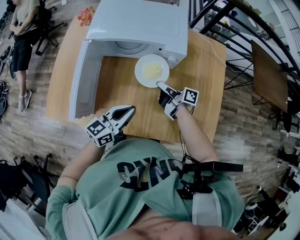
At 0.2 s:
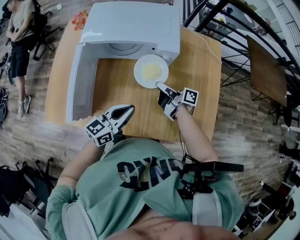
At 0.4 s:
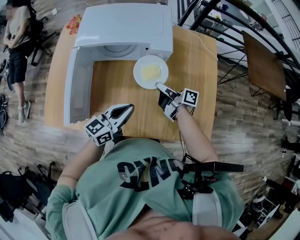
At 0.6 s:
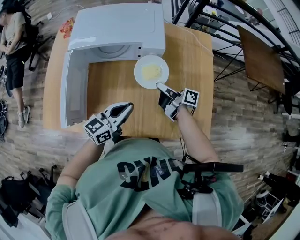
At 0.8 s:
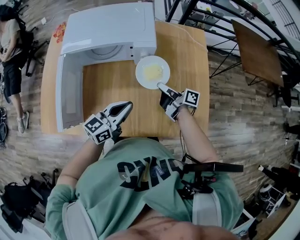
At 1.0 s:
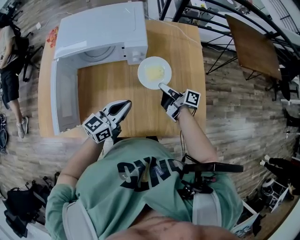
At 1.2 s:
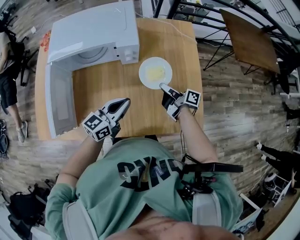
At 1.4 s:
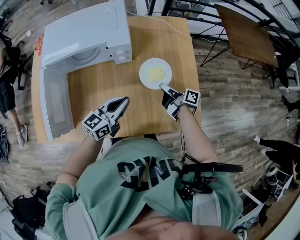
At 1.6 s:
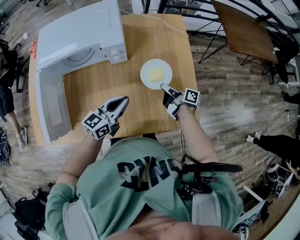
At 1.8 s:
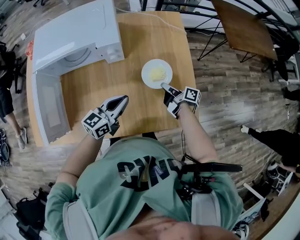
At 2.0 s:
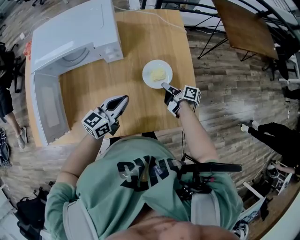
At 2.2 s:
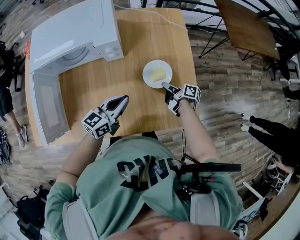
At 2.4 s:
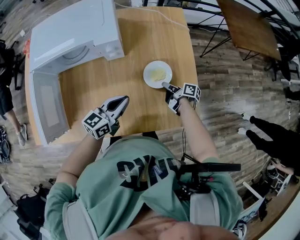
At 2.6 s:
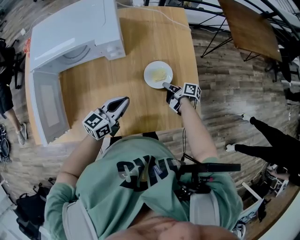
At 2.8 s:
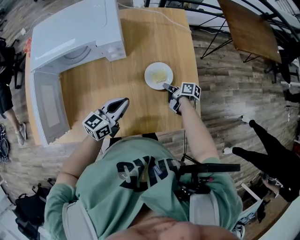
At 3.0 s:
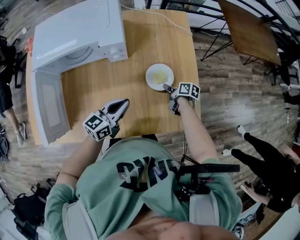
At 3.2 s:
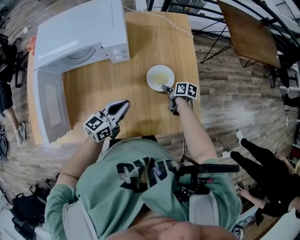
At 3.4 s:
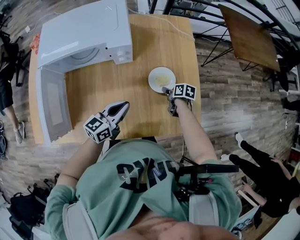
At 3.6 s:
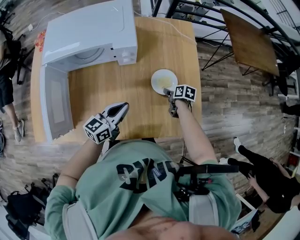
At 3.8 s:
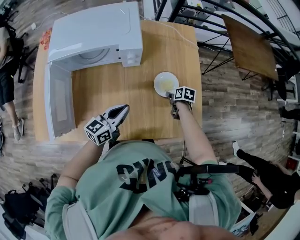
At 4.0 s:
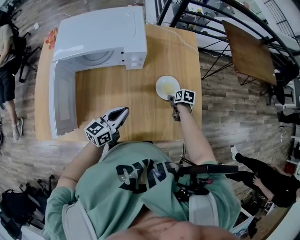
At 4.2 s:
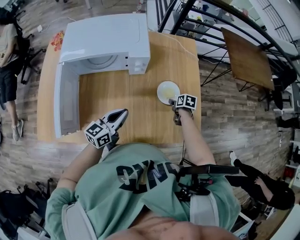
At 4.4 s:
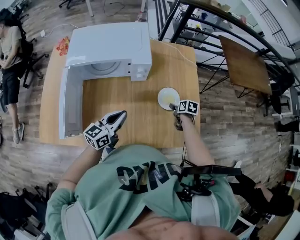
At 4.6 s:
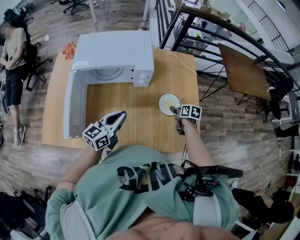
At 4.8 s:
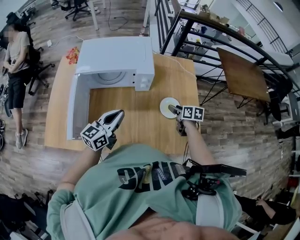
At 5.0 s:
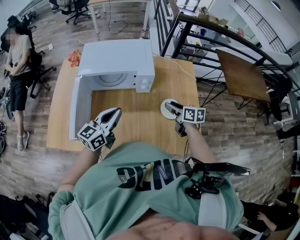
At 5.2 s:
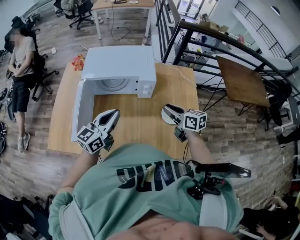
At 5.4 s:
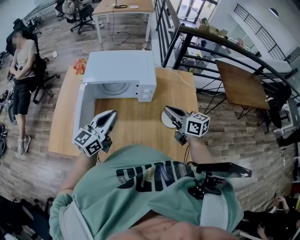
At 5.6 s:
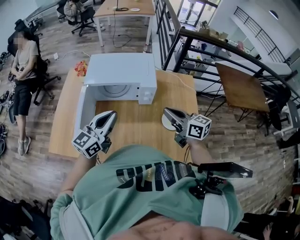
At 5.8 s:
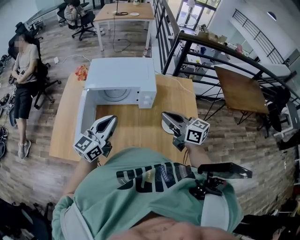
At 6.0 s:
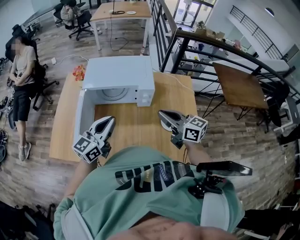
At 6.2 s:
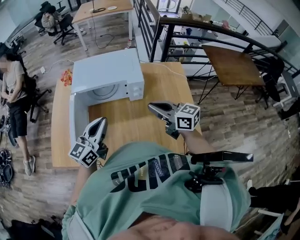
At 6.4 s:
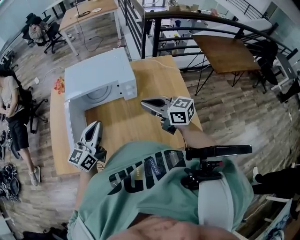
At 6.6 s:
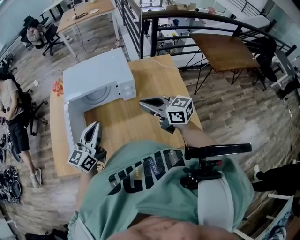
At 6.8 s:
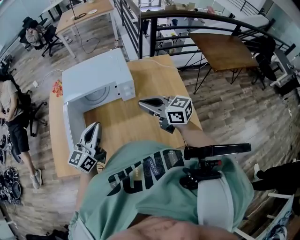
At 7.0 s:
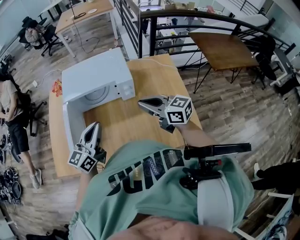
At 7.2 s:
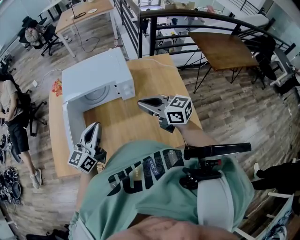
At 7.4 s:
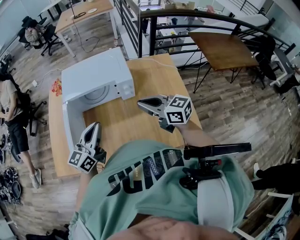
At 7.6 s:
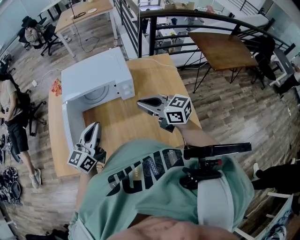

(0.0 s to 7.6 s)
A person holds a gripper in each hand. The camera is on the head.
0.0 s - 1.6 s: The left gripper moves to the right, roughly 15 cm, while the right gripper travels to the right by approximately 25 cm, and turns by about 20 degrees.
1.6 s - 3.0 s: The right gripper heads downward, covering about 10 cm, and changes its angle by roughly 30 degrees.
3.0 s - 4.6 s: The left gripper moves to the left and upward, roughly 15 cm. Meanwhile the right gripper moves upward, approximately 10 cm, turns by roughly 30 degrees, and opens its fingers.
4.6 s - 6.0 s: The left gripper goes approximately 15 cm upward and to the left. Meanwhile the right gripper travels upward and to the left by about 35 cm, tips its fingers upward by about 50 degrees, and closes.
6.0 s - 7.6 s: The grippers stay close to where they were, moving slightly.

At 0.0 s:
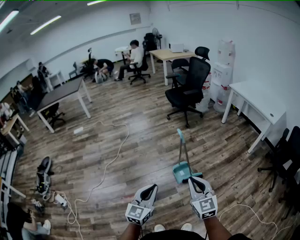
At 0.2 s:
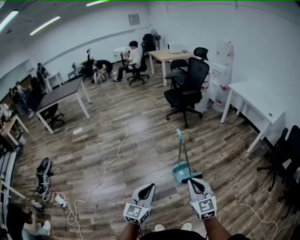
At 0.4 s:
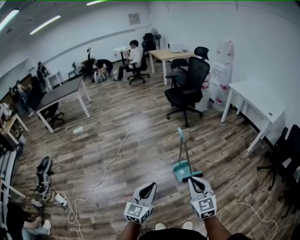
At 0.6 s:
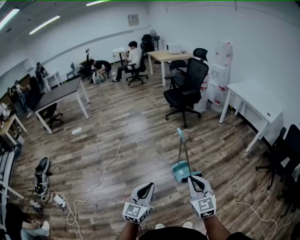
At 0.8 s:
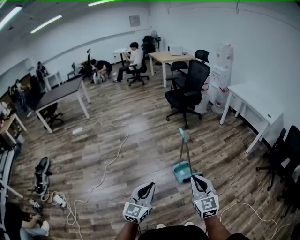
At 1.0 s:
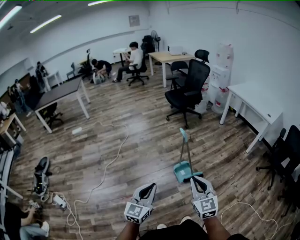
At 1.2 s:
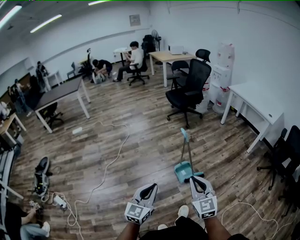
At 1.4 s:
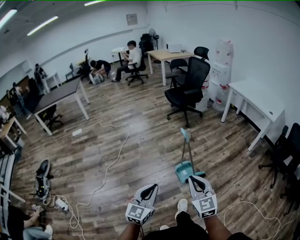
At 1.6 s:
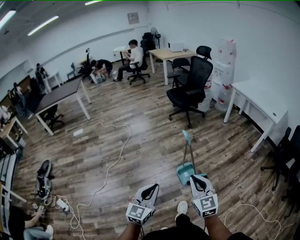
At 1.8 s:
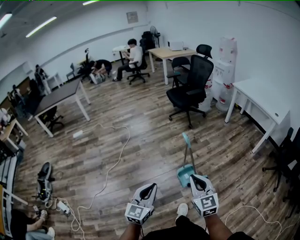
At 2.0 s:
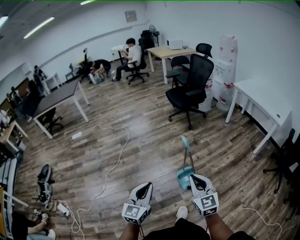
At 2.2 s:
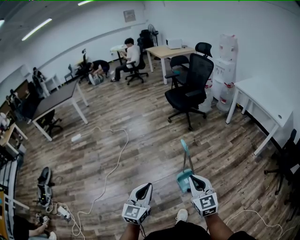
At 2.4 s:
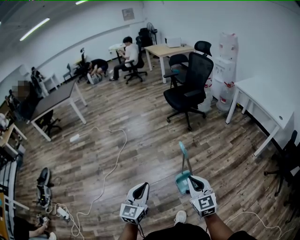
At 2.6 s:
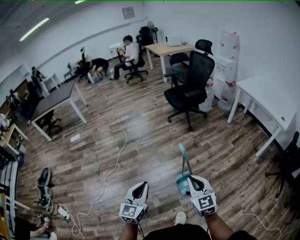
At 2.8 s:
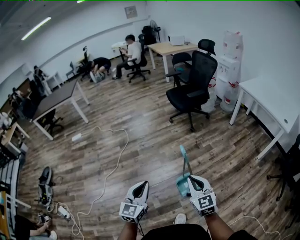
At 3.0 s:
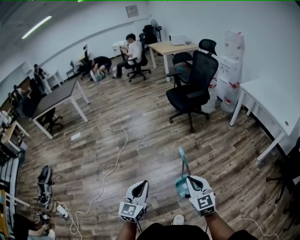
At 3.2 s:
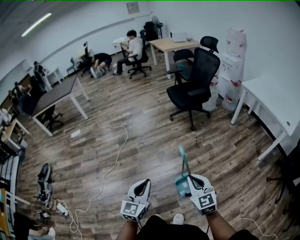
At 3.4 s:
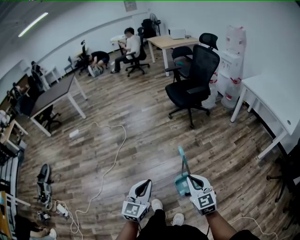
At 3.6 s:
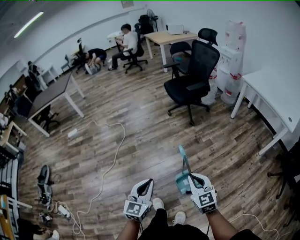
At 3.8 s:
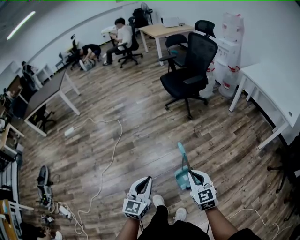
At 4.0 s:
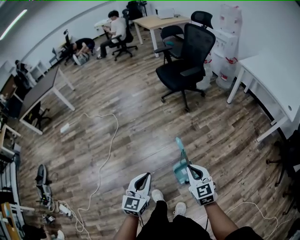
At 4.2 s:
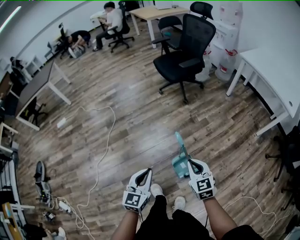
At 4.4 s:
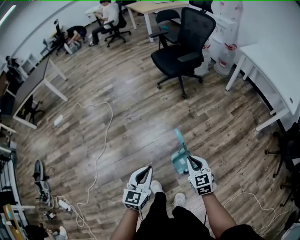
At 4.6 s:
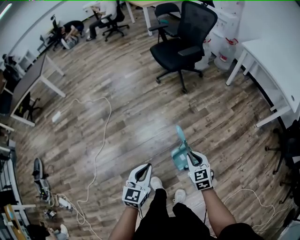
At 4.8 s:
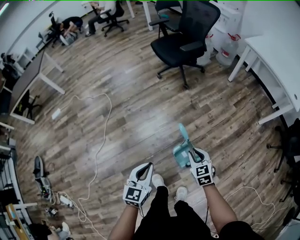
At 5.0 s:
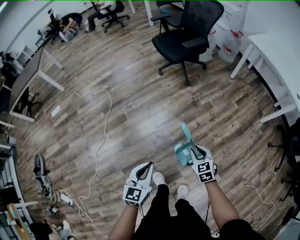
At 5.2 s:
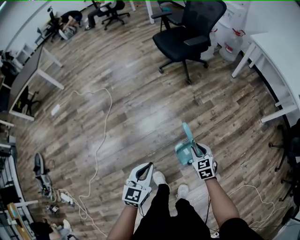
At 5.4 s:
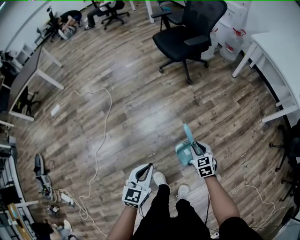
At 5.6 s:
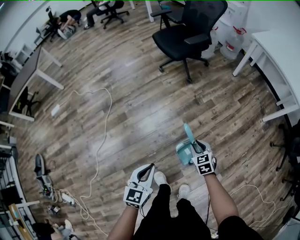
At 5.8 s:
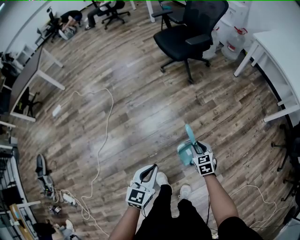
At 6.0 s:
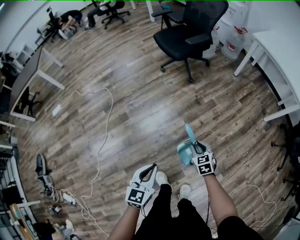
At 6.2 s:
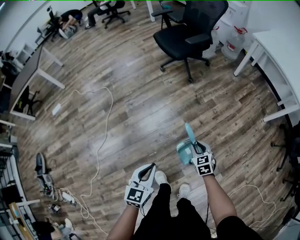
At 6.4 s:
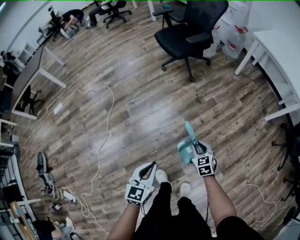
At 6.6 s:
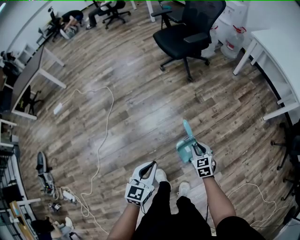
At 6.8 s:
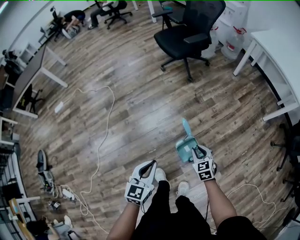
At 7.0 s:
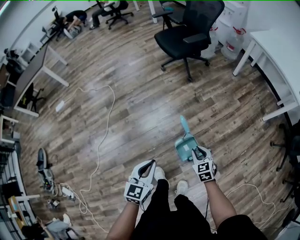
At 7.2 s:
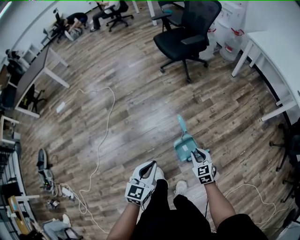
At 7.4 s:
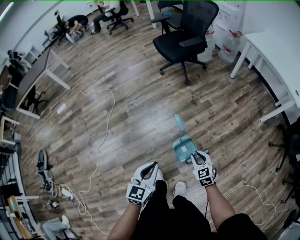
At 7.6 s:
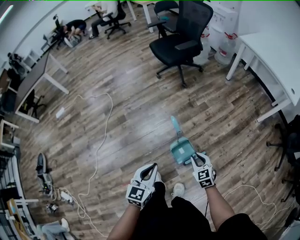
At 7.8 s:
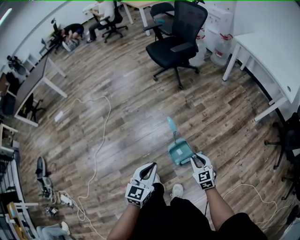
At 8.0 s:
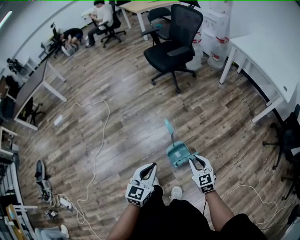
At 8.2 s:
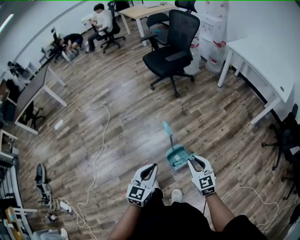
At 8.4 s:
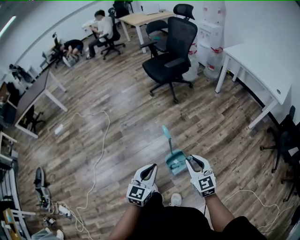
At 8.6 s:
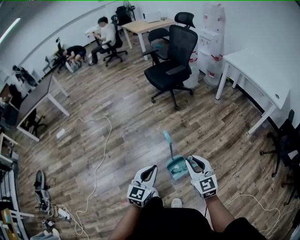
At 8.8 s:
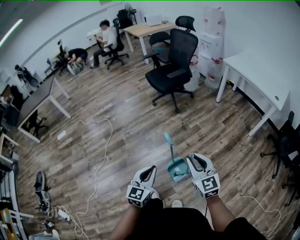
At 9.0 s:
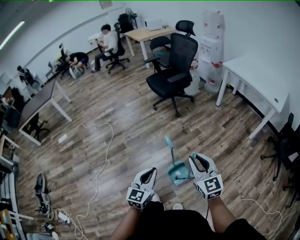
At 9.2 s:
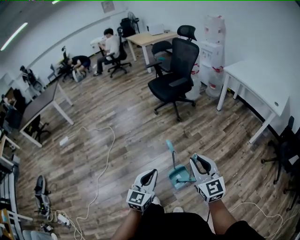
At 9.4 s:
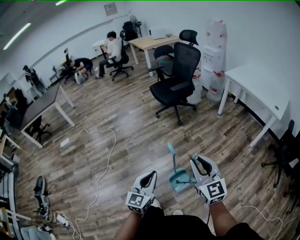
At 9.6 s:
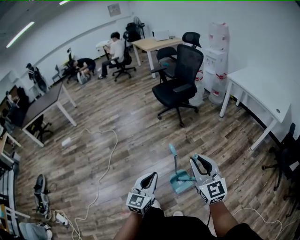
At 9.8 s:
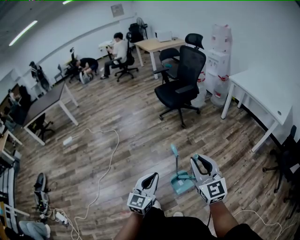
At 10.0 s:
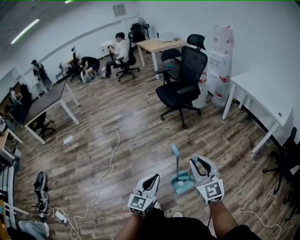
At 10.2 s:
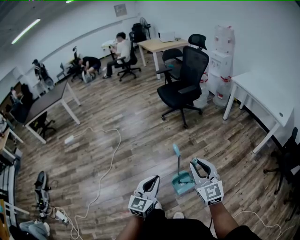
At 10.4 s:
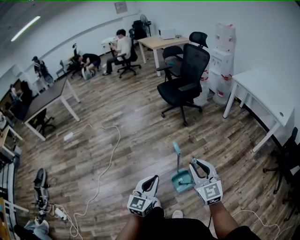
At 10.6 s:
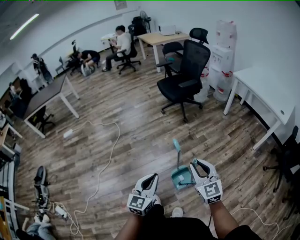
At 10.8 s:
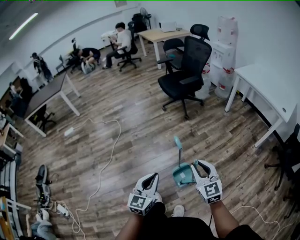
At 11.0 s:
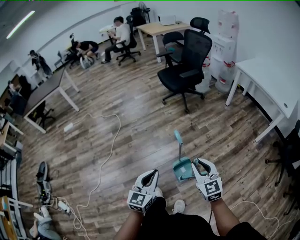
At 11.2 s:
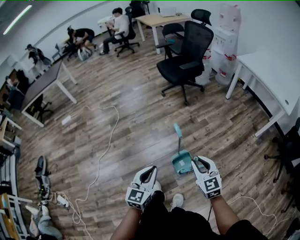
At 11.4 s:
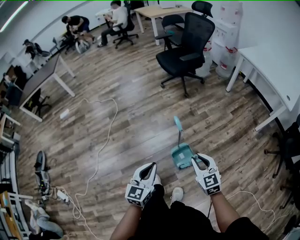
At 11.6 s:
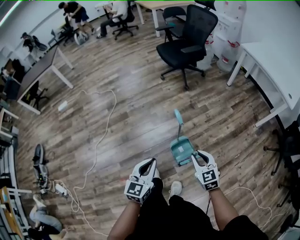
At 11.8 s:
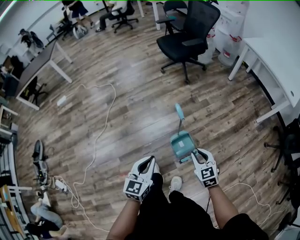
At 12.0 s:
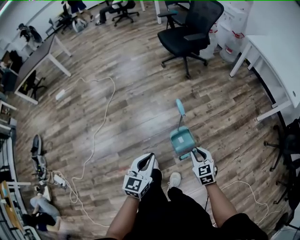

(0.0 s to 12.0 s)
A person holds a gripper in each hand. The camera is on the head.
0.0 s - 1.6 s: The right gripper moves approximately 5 cm. Meanwhile the left gripper ends up roughly 5 cm from where it was.
1.6 s - 3.0 s: Both grippers move forward, about 20 cm.
3.0 s - 4.4 s: The right gripper moves downward and forward, some 20 cm; the left gripper goes roughly 15 cm forward and downward.
4.4 s - 6.0 s: The right gripper moves downward and forward, approximately 15 cm. The left gripper shifts some 5 cm downward.
6.0 s - 7.6 s: The left gripper heads to the right and backward, covering some 10 cm. Meanwhile the right gripper heads backward and to the right, covering about 15 cm.
7.6 s - 9.0 s: The left gripper moves upward, roughly 5 cm; the right gripper heads upward, covering some 25 cm, and changes its angle by about 30 degrees.
10.4 s - 12.0 s: The right gripper moves downward, approximately 25 cm, and tips its fingers downward by approximately 30 degrees. The left gripper goes roughly 5 cm downward.

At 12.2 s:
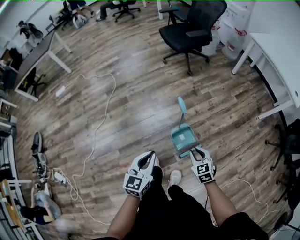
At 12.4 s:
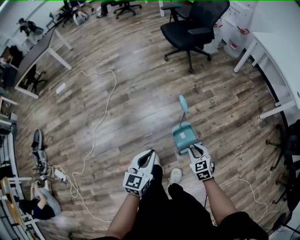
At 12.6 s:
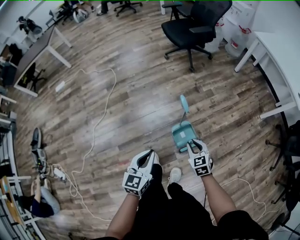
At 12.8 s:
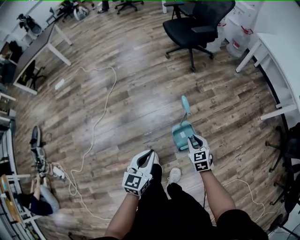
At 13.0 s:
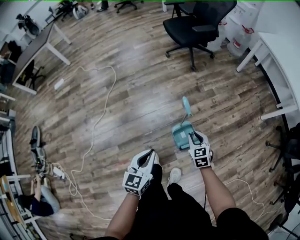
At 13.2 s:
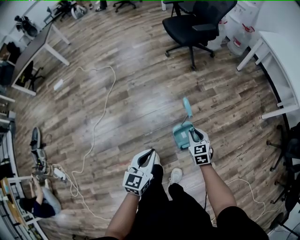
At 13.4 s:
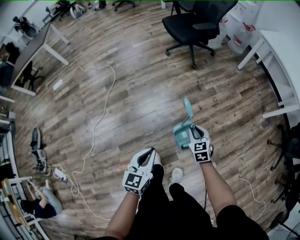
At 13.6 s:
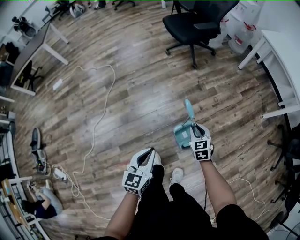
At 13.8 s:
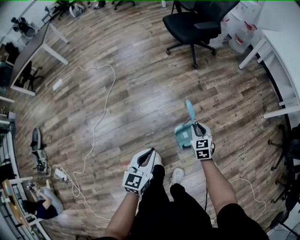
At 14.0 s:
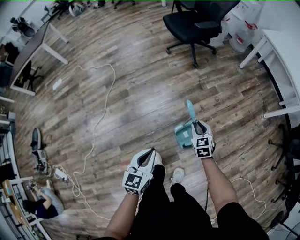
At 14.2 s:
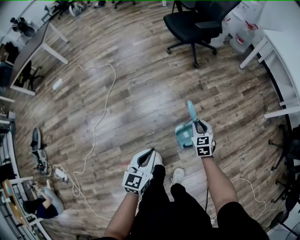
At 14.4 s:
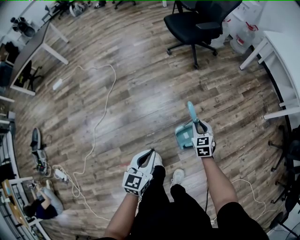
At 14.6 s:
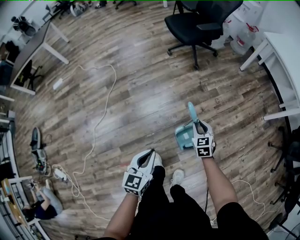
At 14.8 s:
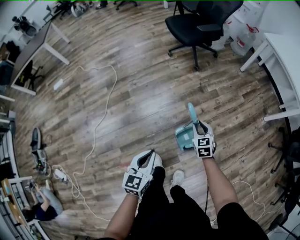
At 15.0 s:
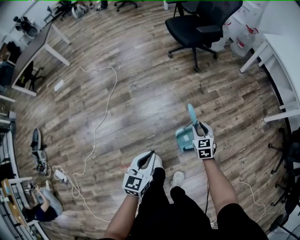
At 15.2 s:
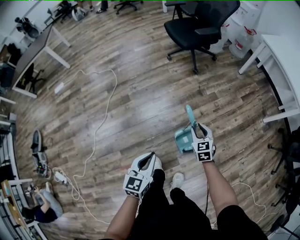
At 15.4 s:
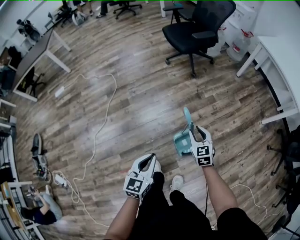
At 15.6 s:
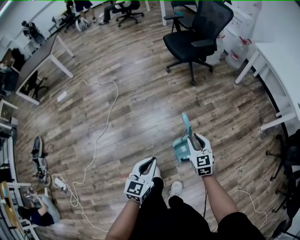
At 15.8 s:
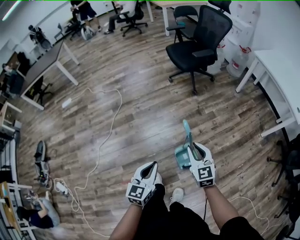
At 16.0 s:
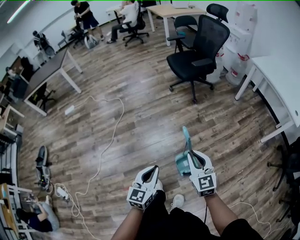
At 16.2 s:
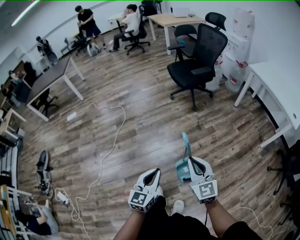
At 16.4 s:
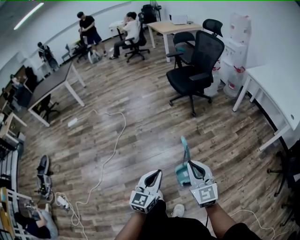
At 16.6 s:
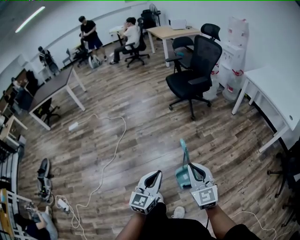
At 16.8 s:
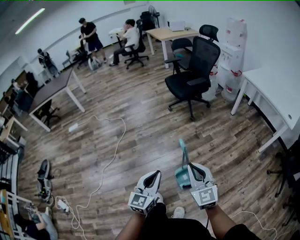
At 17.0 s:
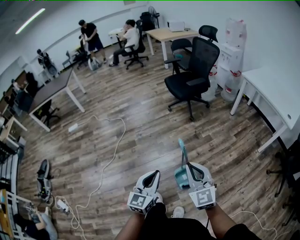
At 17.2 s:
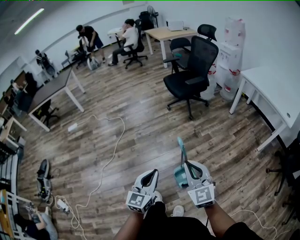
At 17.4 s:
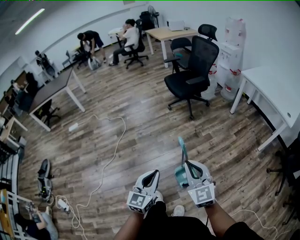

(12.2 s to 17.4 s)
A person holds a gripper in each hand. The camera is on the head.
12.2 s - 14.0 s: The left gripper goes some 5 cm forward. Meanwhile the right gripper travels forward by about 20 cm.
14.0 s - 15.6 s: The right gripper heads upward, covering some 10 cm.
15.6 s - 17.4 s: The right gripper travels upward and backward by about 25 cm, swivels some 20 degrees, and closes up. The left gripper goes about 10 cm upward.
